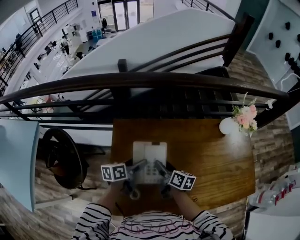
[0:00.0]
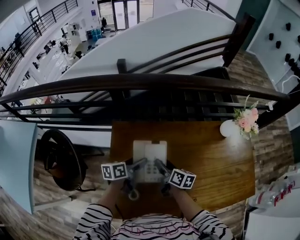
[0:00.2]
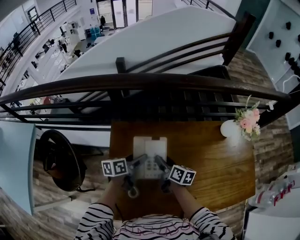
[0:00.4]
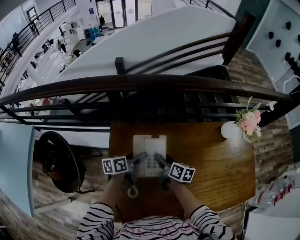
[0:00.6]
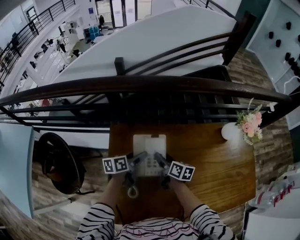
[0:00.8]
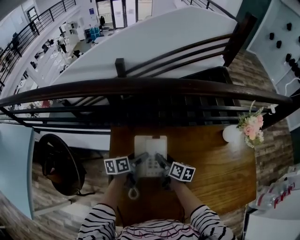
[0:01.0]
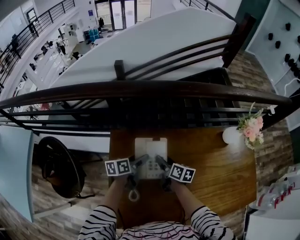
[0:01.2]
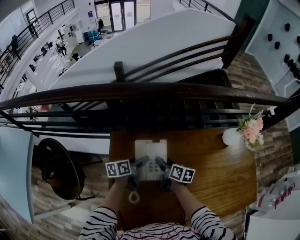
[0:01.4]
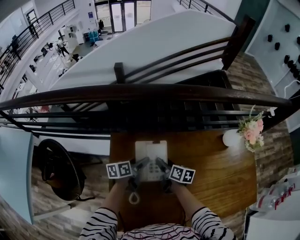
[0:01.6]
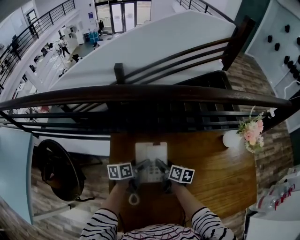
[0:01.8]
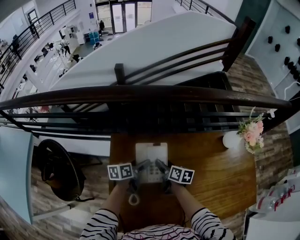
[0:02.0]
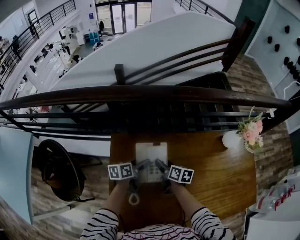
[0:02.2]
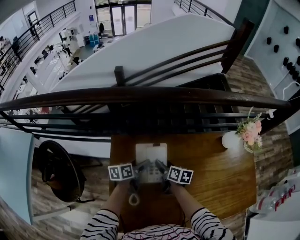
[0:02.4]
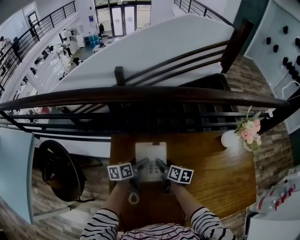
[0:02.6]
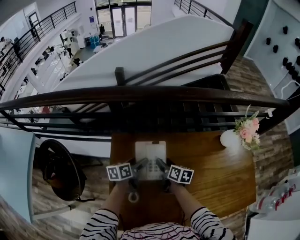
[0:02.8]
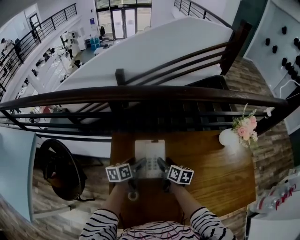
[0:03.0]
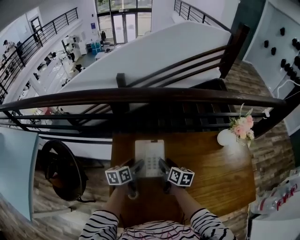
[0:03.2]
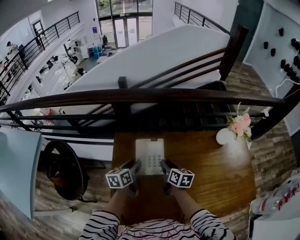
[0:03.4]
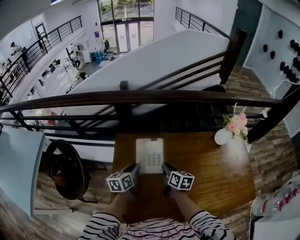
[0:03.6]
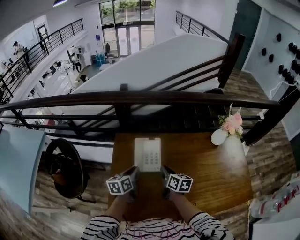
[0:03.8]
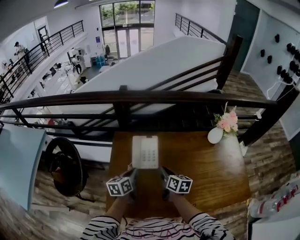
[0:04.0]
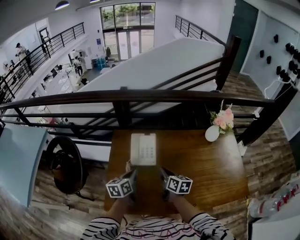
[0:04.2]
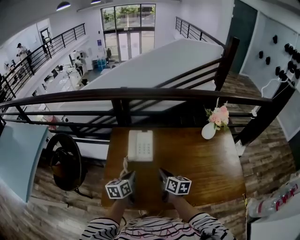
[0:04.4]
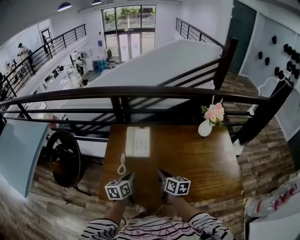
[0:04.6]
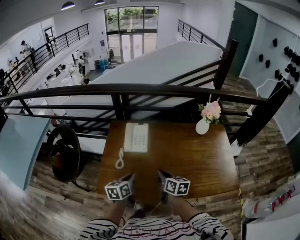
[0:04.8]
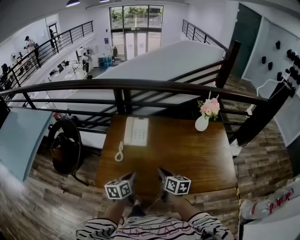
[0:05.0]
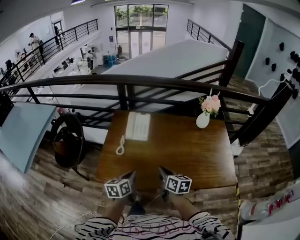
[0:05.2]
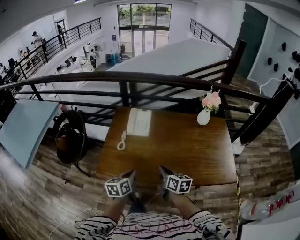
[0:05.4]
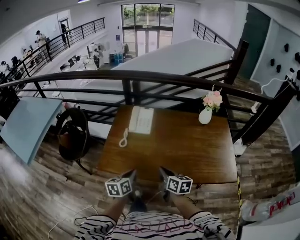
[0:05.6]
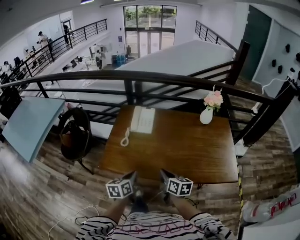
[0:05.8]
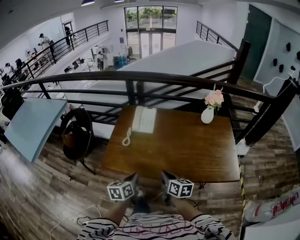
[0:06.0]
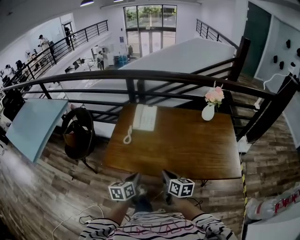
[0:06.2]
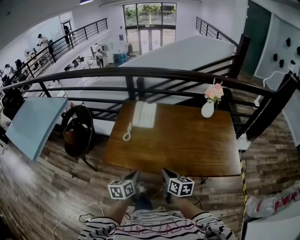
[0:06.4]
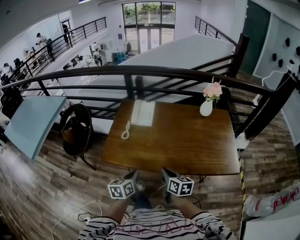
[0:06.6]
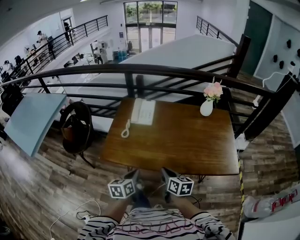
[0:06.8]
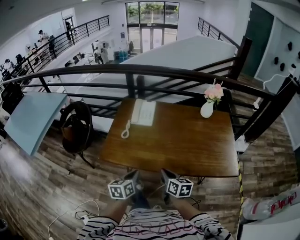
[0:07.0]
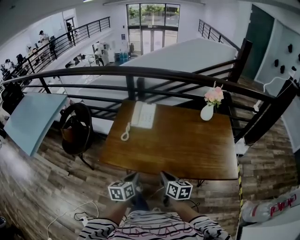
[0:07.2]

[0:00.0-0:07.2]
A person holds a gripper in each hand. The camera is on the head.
0:00.0 to 0:01.4: Both grippers travel together forward and downward, roughly 15 cm.
0:01.4 to 0:02.8: The grippers move only a little.
0:02.8 to 0:04.4: Both grippers travel together backward, about 30 cm. The right gripper closes its fingers. Meanwhile the left gripper turns by some 20 degrees, and closes.
0:04.4 to 0:05.8: Both grippers travel together backward, approximately 30 cm.
0:05.8 to 0:07.2: Both grippers move backward, about 5 cm.

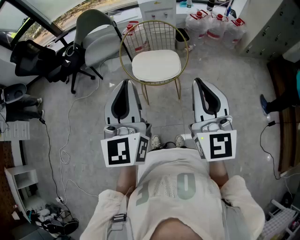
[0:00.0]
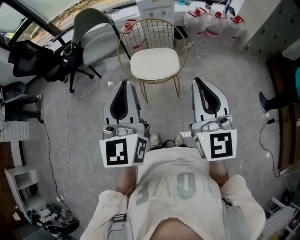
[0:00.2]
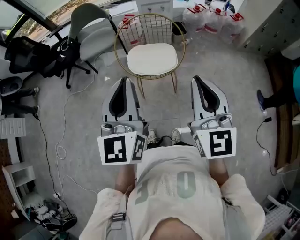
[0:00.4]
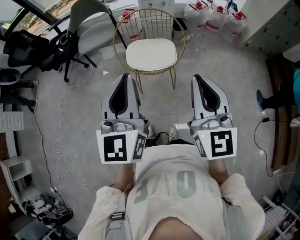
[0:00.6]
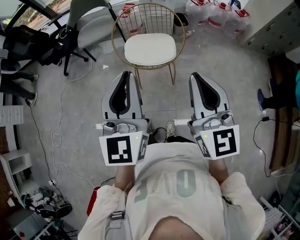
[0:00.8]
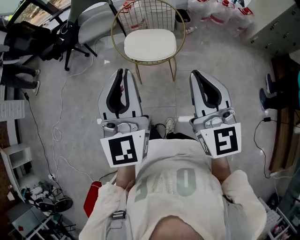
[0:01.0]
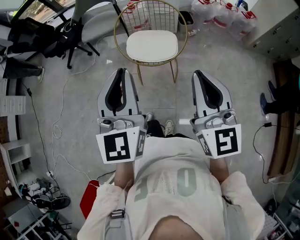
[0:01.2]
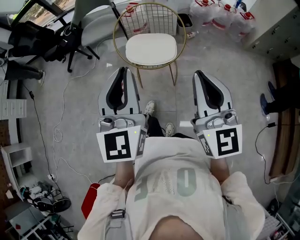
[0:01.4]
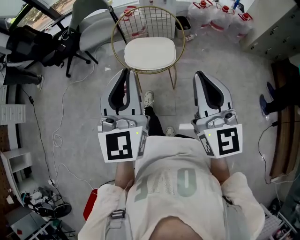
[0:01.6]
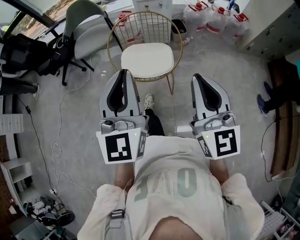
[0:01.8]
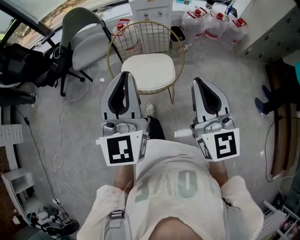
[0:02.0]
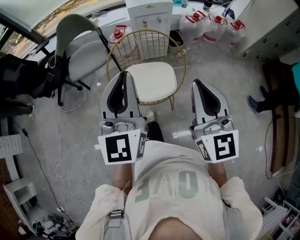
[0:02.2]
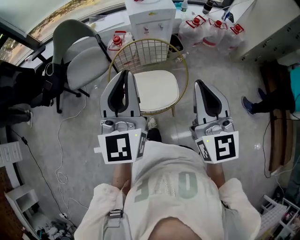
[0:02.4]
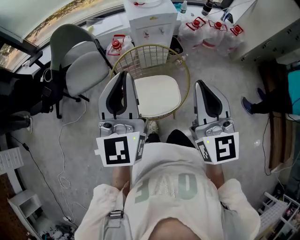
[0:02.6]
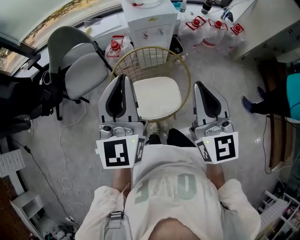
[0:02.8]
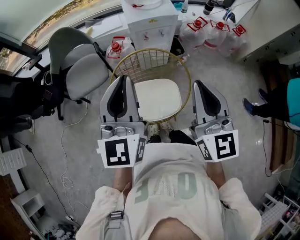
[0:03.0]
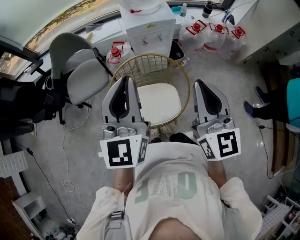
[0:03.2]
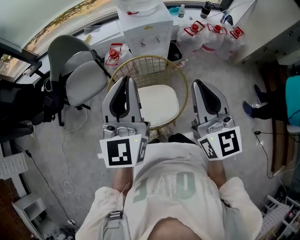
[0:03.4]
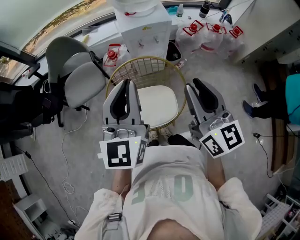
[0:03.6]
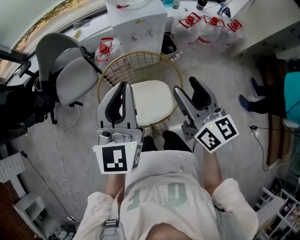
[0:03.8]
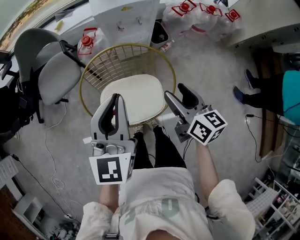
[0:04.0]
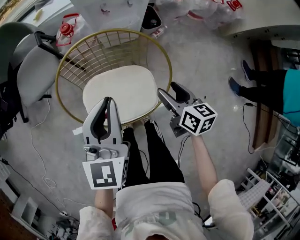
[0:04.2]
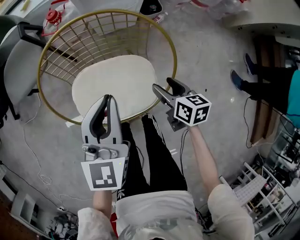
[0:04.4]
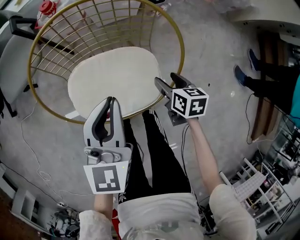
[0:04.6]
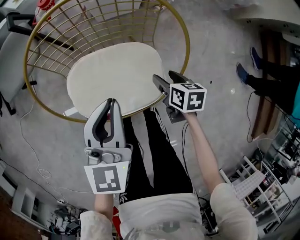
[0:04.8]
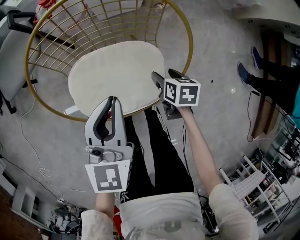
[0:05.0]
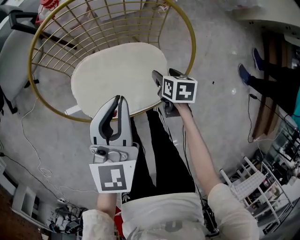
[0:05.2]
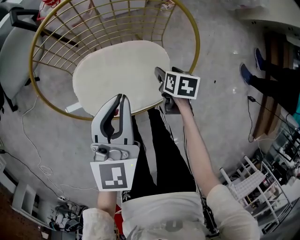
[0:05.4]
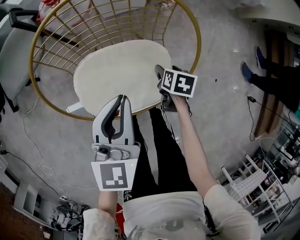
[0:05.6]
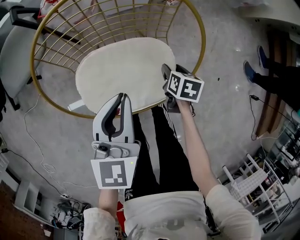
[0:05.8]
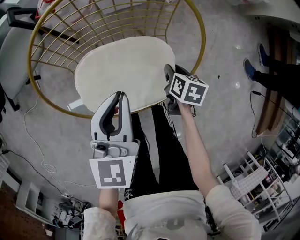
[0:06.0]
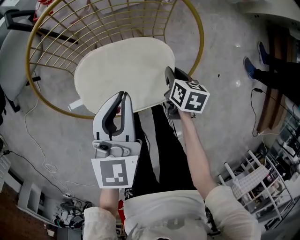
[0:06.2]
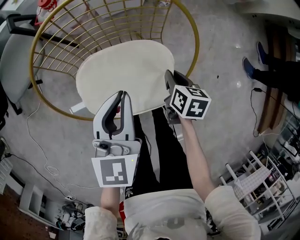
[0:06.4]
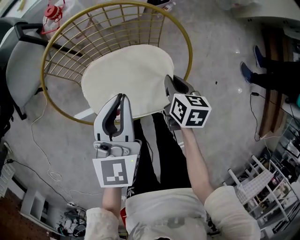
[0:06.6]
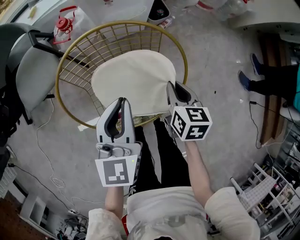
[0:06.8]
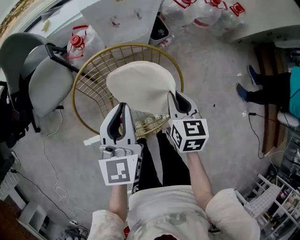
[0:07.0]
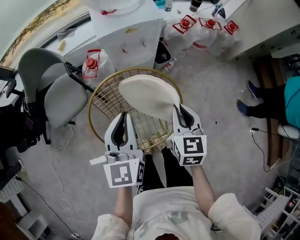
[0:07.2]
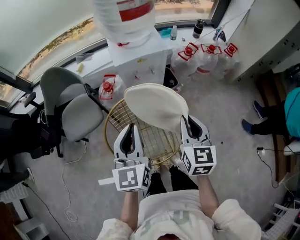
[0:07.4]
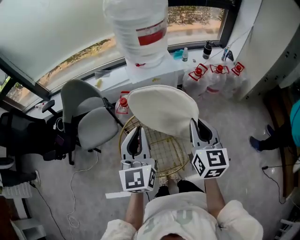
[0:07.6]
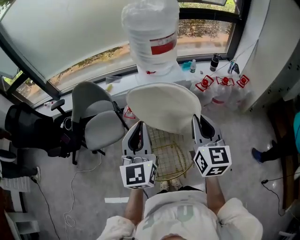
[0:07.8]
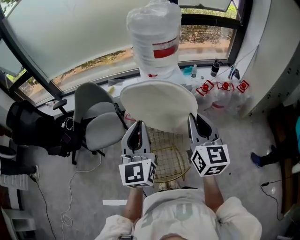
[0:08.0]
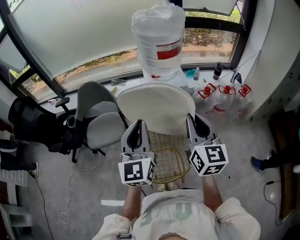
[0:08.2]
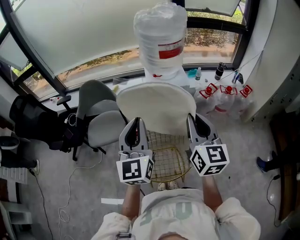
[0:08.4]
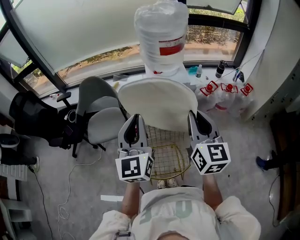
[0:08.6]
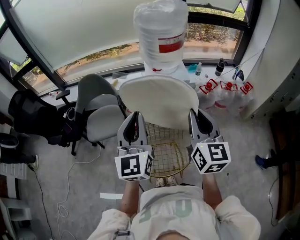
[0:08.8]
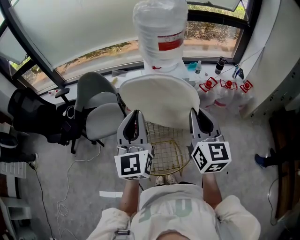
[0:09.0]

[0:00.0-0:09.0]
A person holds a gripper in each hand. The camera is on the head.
0:00.0 to 0:01.6: Both grippers move to the right, some 5 cm.
0:01.6 to 0:03.0: Both grippers travel together forward, roughly 35 cm.
0:03.0 to 0:04.4: The right gripper is displaced downward by approximately 50 cm, tilts its fingers some 50 degrees downward, and opens its fingers. Meanwhile the left gripper travels downward by about 30 cm, and swivels about 30 degrees.
0:04.4 to 0:06.0: The grippers both shift downward by about 10 cm. The right gripper changes its angle by approximately 20 degrees, and closes its fingers.
0:06.0 to 0:07.6: The left gripper travels upward by about 35 cm, and changes its angle by about 30 degrees, while the right gripper shifts about 60 cm upward, and angles its fingers upward, by about 50 degrees.
0:07.6 to 0:09.0: The two grippers go approximately 10 cm upward.

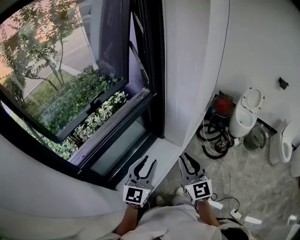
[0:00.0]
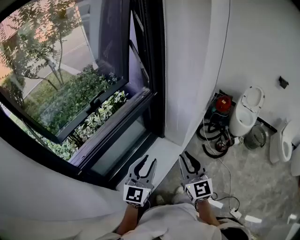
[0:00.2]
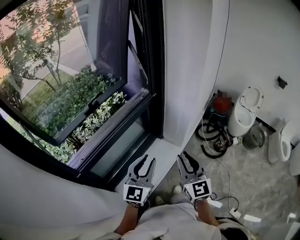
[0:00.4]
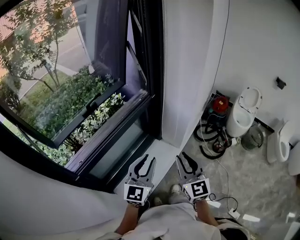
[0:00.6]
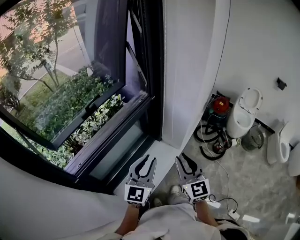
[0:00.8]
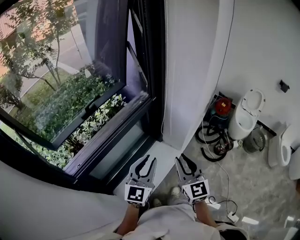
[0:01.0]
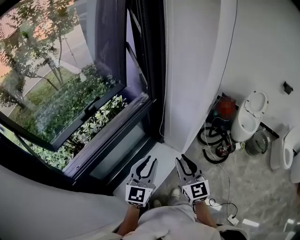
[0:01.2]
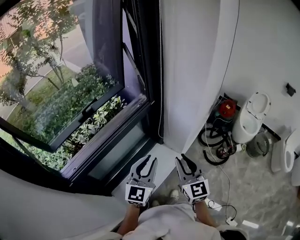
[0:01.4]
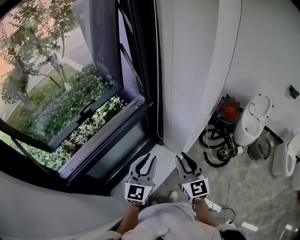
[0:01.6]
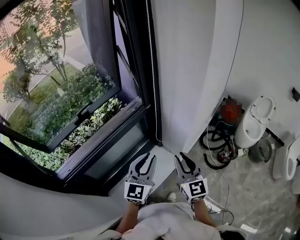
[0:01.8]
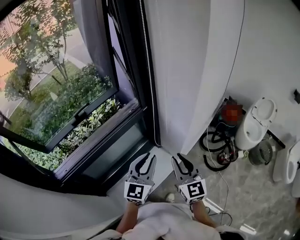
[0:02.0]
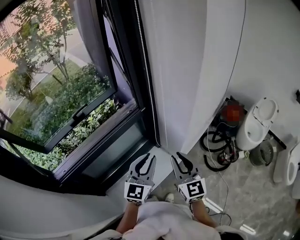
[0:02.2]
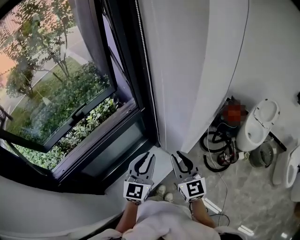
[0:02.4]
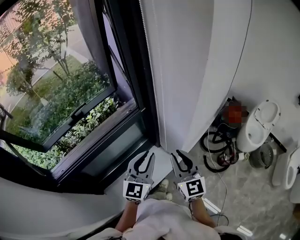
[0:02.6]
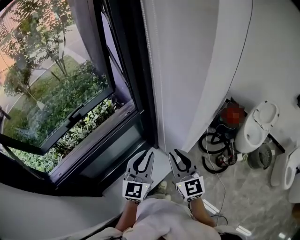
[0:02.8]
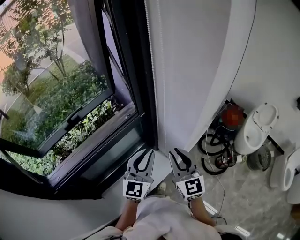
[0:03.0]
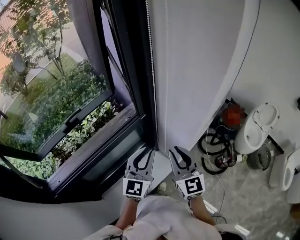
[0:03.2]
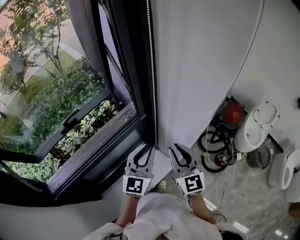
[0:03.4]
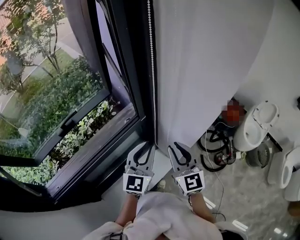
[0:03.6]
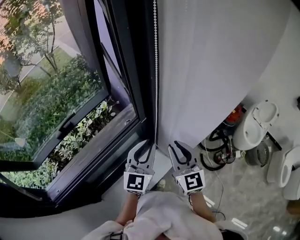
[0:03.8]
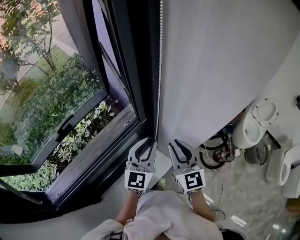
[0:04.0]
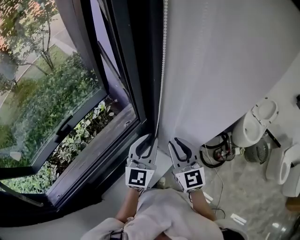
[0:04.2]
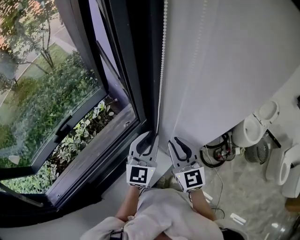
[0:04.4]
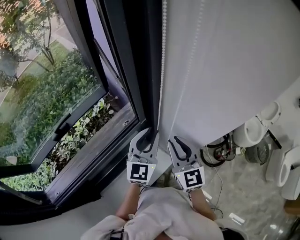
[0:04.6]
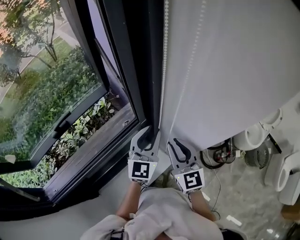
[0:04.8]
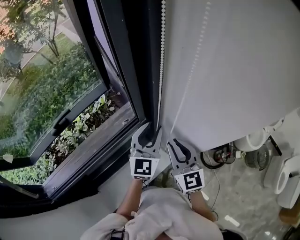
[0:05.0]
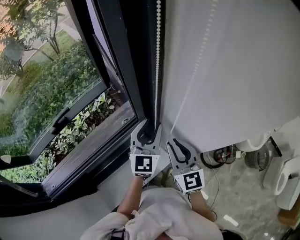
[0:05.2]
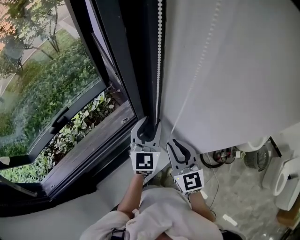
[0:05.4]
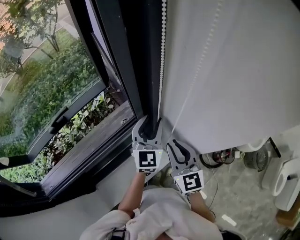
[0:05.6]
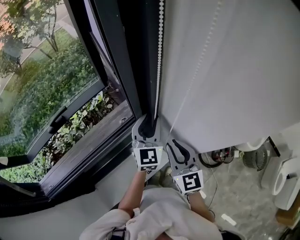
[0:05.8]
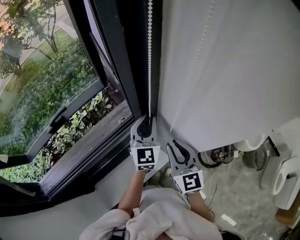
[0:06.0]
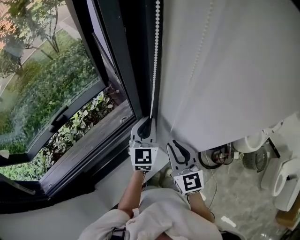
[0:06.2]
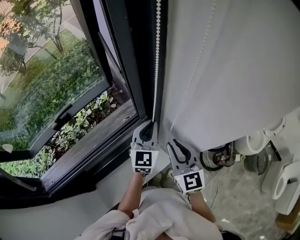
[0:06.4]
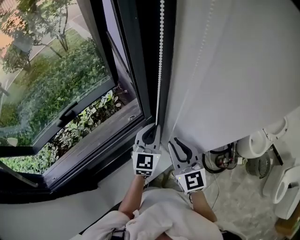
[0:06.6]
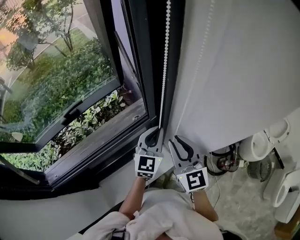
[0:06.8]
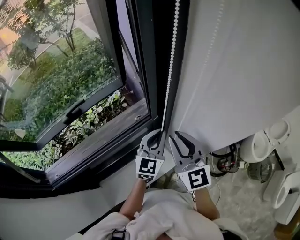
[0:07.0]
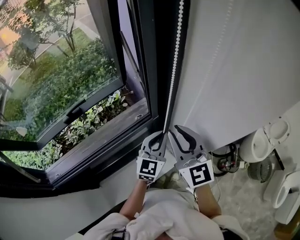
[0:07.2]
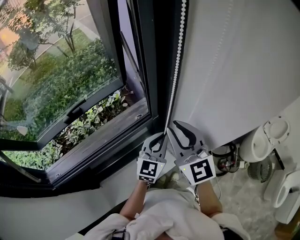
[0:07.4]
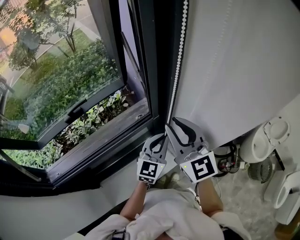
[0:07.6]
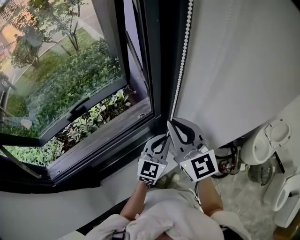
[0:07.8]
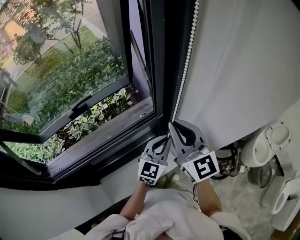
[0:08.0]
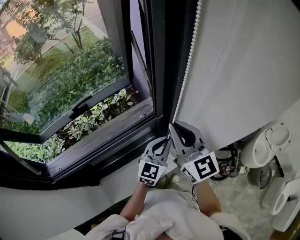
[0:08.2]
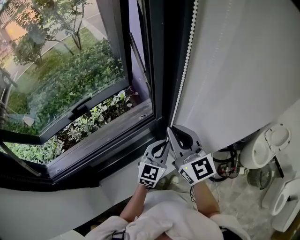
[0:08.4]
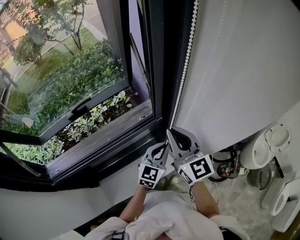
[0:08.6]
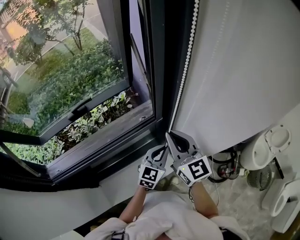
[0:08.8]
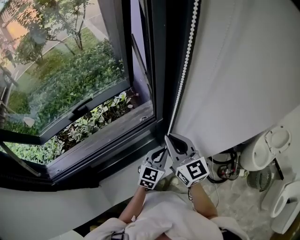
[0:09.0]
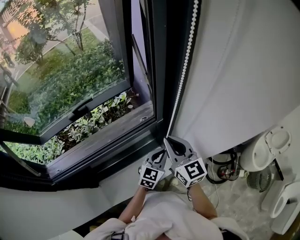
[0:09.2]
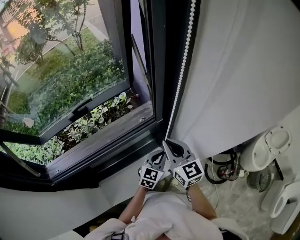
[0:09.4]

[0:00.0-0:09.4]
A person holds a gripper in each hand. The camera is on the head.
0:00.0 to 0:01.6: The right gripper travels forward by about 15 cm. Meanwhile the left gripper moves forward and to the right, about 15 cm.
0:01.6 to 0:03.2: The grippers both shift forward by roughly 15 cm.
0:03.2 to 0:04.8: Both grippers move forward, some 10 cm.
0:04.8 to 0:06.2: The left gripper shifts by approximately 5 cm, and closes.
0:06.2 to 0:07.8: The left gripper travels backward by approximately 10 cm; the right gripper shifts some 15 cm upward and to the left, and rotates roughly 20 degrees.
0:07.8 to 0:09.4: Both grippers move downward, about 15 cm.
